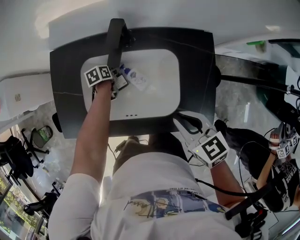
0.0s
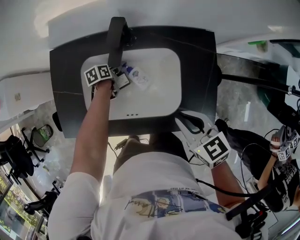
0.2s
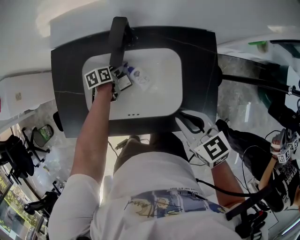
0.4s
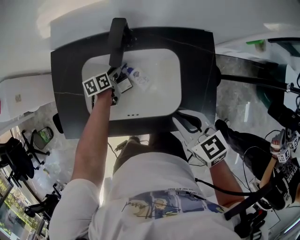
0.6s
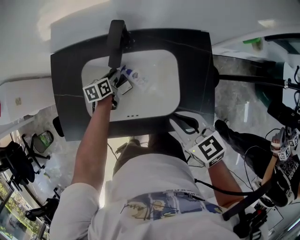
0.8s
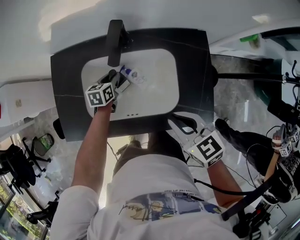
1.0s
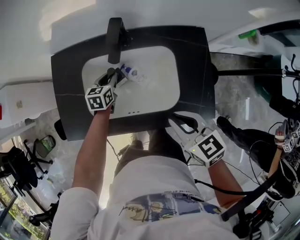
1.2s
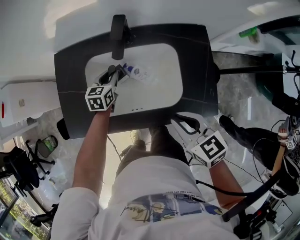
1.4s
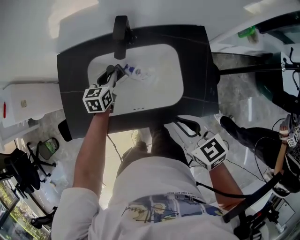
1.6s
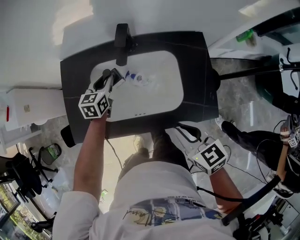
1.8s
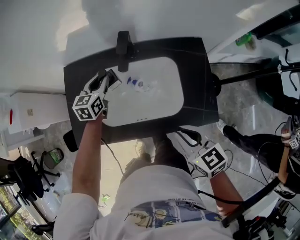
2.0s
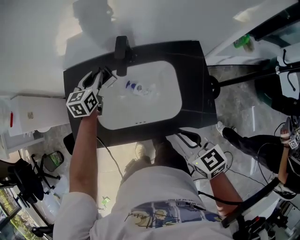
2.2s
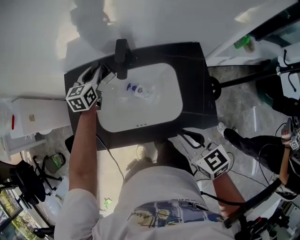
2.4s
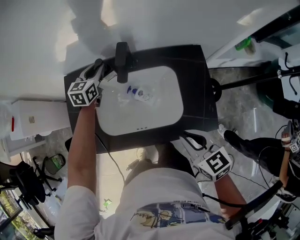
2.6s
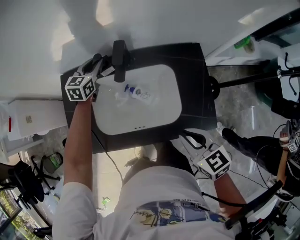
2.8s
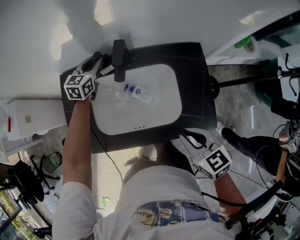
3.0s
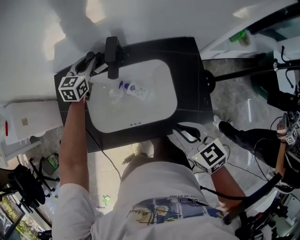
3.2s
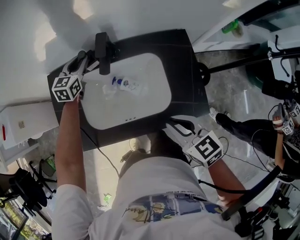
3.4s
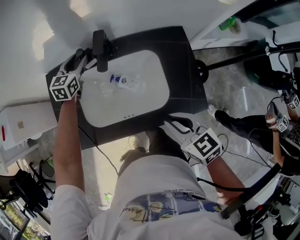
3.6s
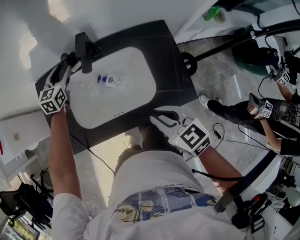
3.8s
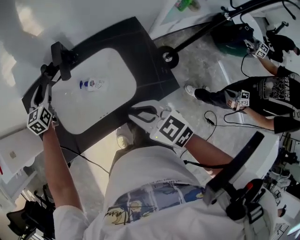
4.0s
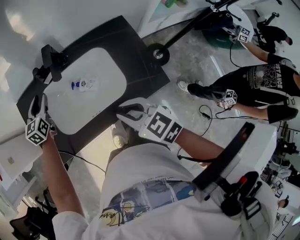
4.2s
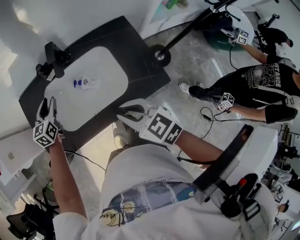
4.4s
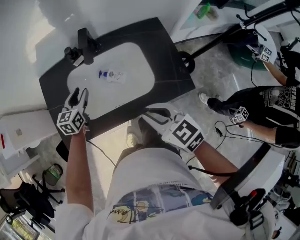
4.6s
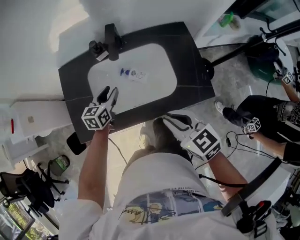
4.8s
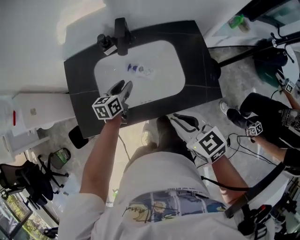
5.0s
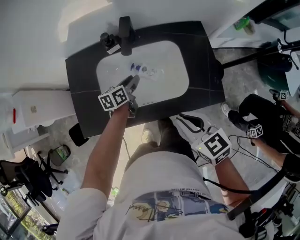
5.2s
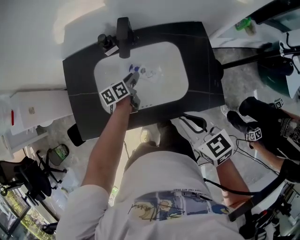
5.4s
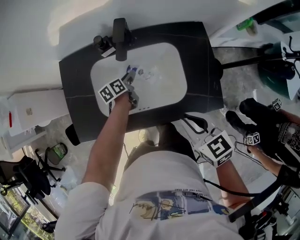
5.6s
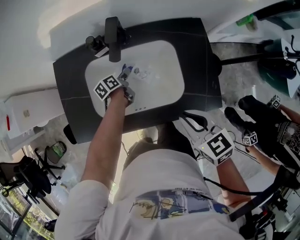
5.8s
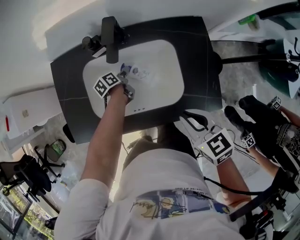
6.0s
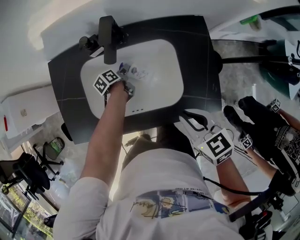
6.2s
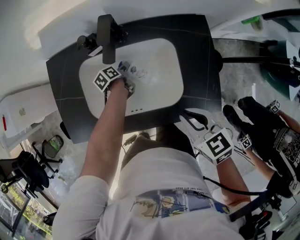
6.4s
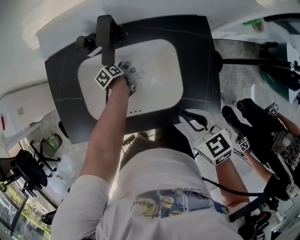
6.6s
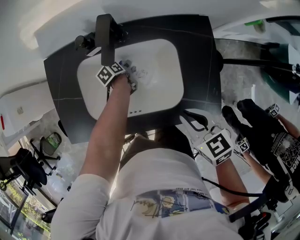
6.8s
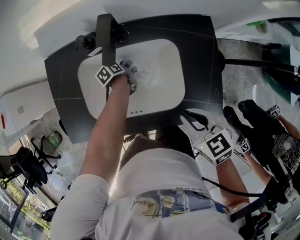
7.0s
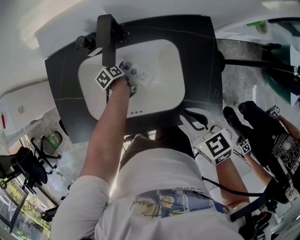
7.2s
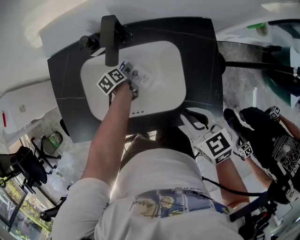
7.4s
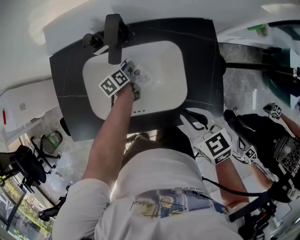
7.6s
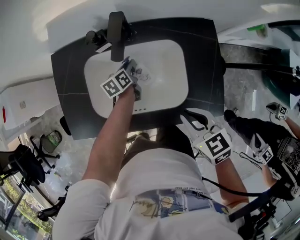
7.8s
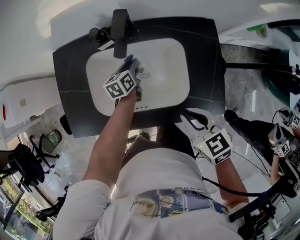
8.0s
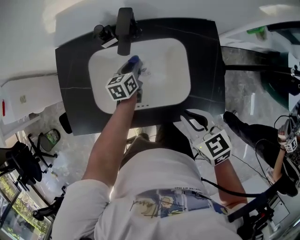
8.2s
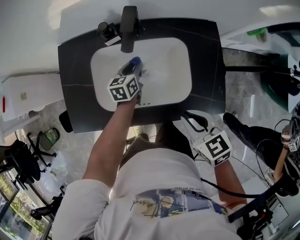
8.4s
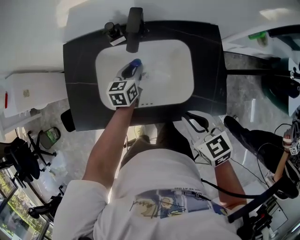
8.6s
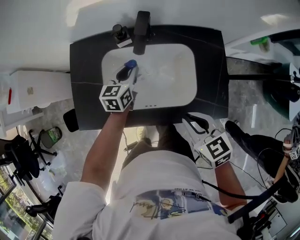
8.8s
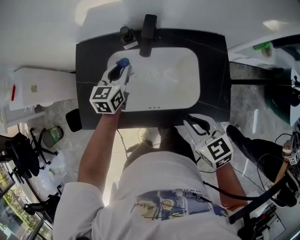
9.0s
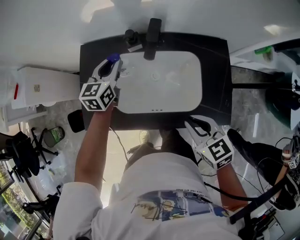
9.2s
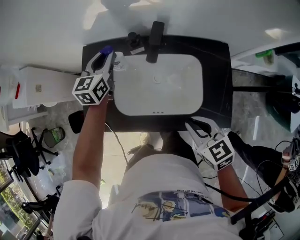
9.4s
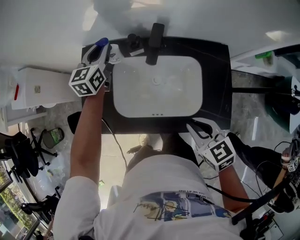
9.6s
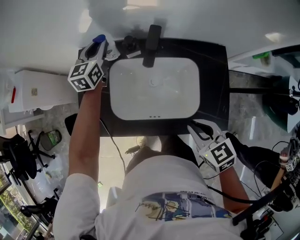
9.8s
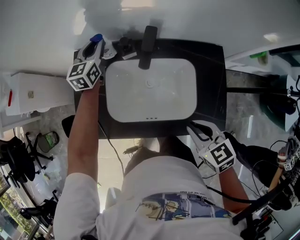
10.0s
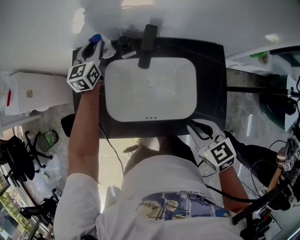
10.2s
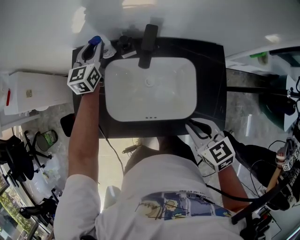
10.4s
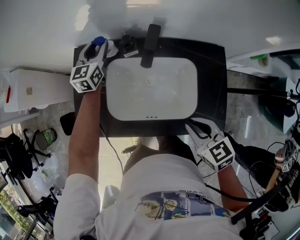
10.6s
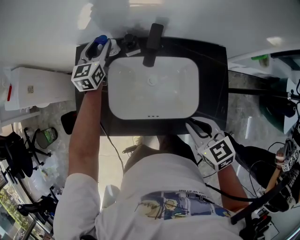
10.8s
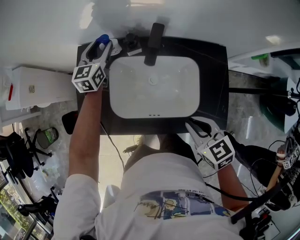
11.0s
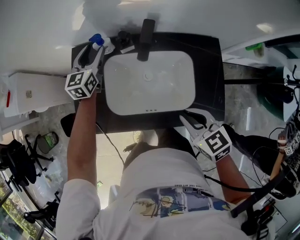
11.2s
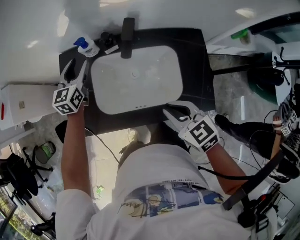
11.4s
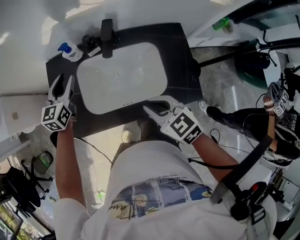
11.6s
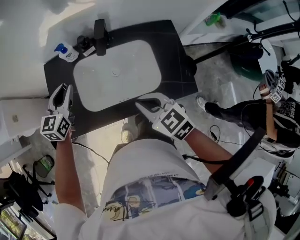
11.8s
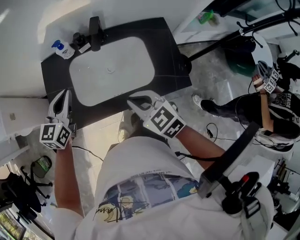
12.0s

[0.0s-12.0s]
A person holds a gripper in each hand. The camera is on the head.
0.0s to 1.6s: The right gripper moves backward, roughly 5 cm, while the left gripper heads upward, covering approximately 15 cm, rotates about 40 degrees, and closes up.
1.6s to 3.0s: The left gripper shifts about 15 cm forward and upward.
3.0s to 4.4s: The left gripper moves backward, about 15 cm, and opens up. The right gripper goes about 5 cm to the left.
4.4s to 6.0s: The right gripper heads to the right, covering approximately 5 cm. The left gripper is displaced downward and to the right by approximately 25 cm, and rolls counterclockwise, seen from behind, by approximately 60 degrees.
6.0s to 7.6s: There are only small adjustments of the grippers.
7.6s to 9.0s: The left gripper travels upward and to the left by roughly 20 cm, and rotates around the line of its fingers by roughly 40 degrees, clockwise from behind, while the right gripper goes roughly 5 cm to the left.
9.0s to 10.4s: The left gripper travels forward by about 15 cm.
10.4s to 12.0s: The left gripper is displaced backward by some 25 cm, swivels approximately 20 degrees, and opens, then closes once more; the right gripper travels to the left by some 10 cm.

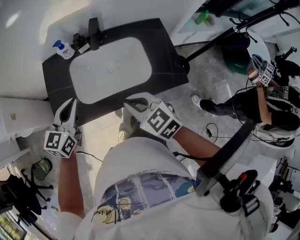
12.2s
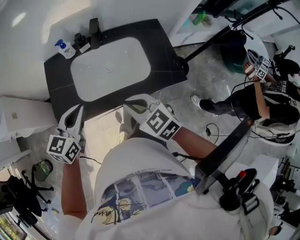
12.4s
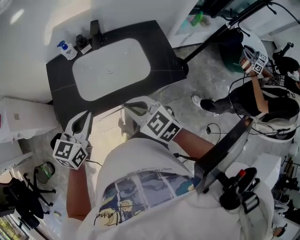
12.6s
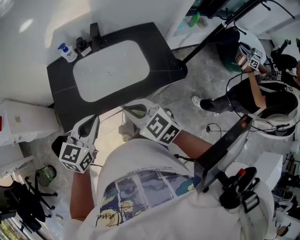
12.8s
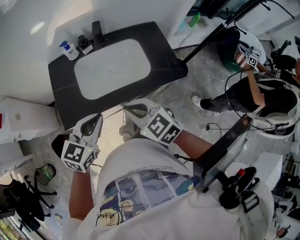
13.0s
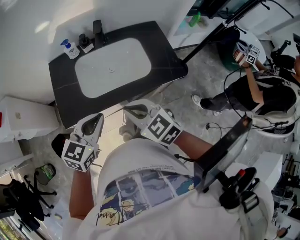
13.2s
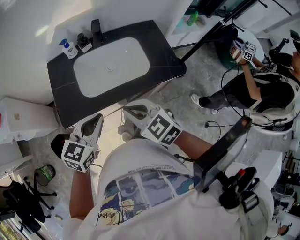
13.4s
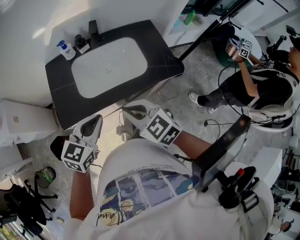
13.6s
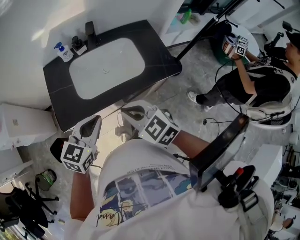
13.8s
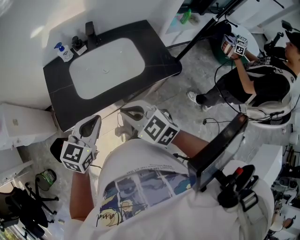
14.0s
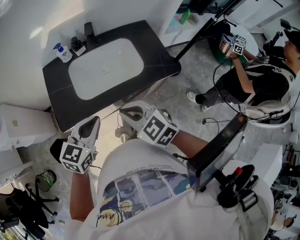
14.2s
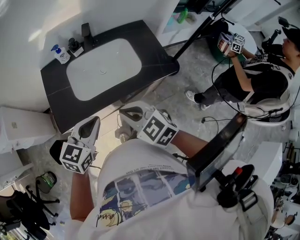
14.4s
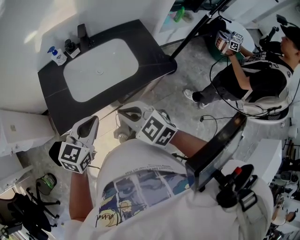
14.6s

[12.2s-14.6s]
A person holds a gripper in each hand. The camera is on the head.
12.2s to 13.4s: The right gripper heads backward, covering some 10 cm; the left gripper heads backward, covering approximately 15 cm.
13.4s to 14.6s: The grippers move only a little.

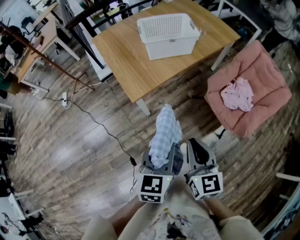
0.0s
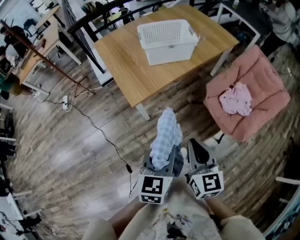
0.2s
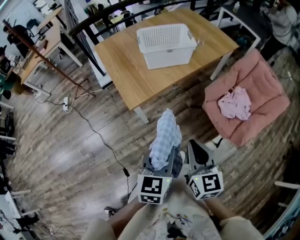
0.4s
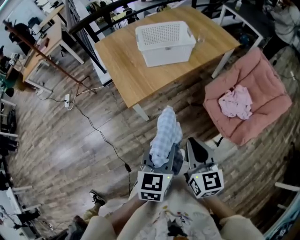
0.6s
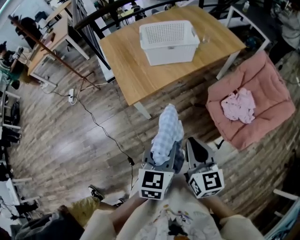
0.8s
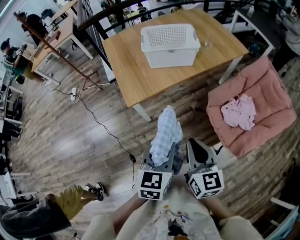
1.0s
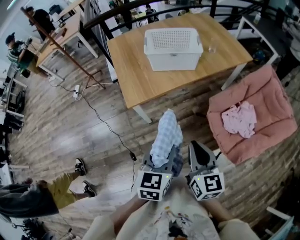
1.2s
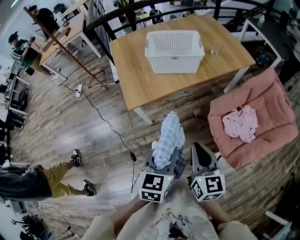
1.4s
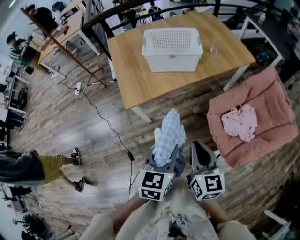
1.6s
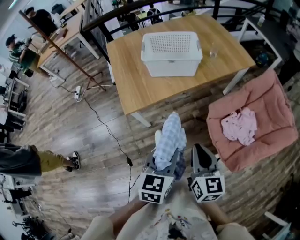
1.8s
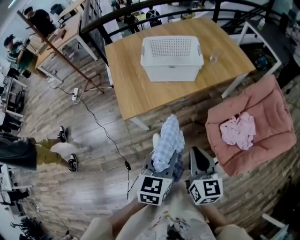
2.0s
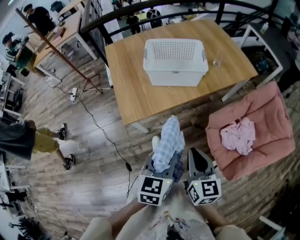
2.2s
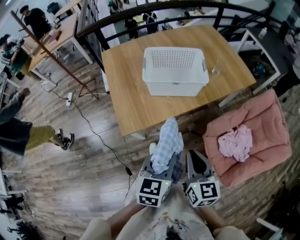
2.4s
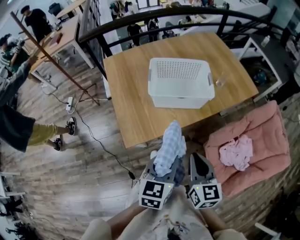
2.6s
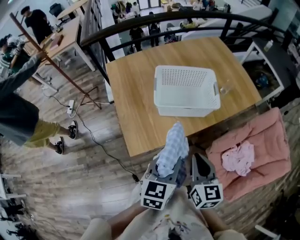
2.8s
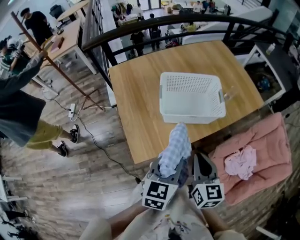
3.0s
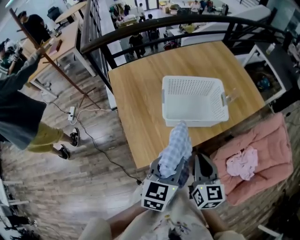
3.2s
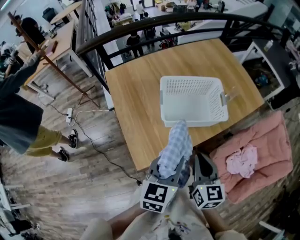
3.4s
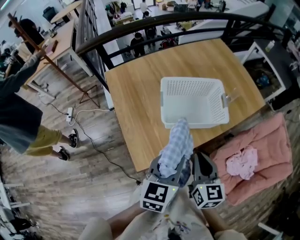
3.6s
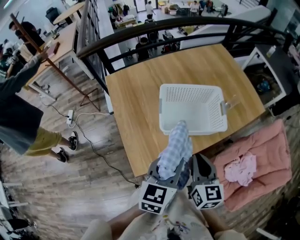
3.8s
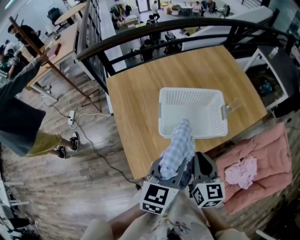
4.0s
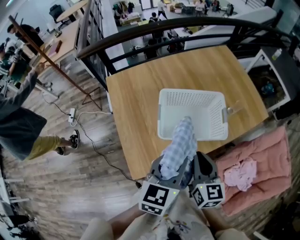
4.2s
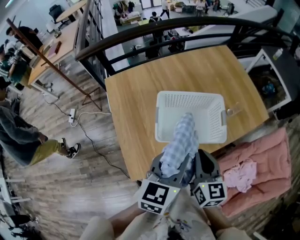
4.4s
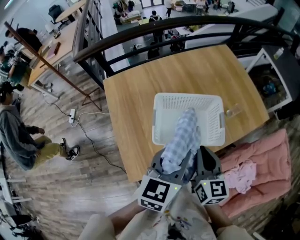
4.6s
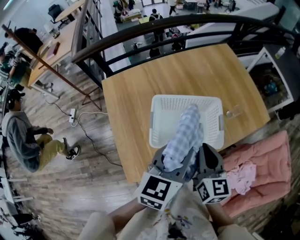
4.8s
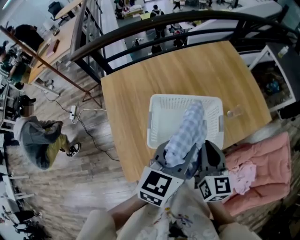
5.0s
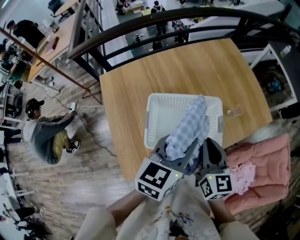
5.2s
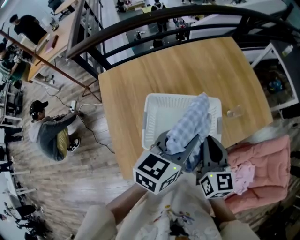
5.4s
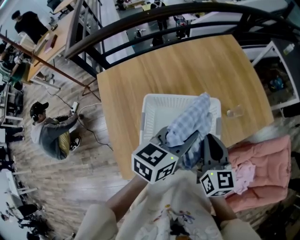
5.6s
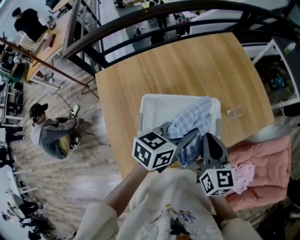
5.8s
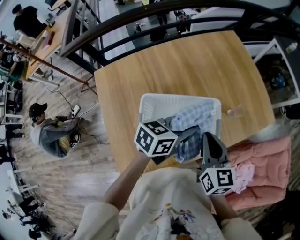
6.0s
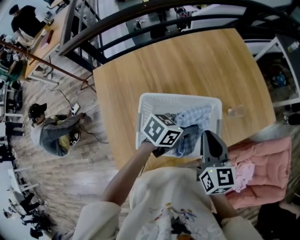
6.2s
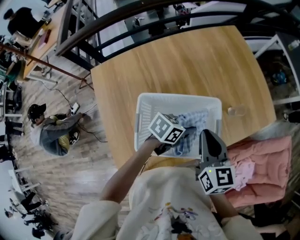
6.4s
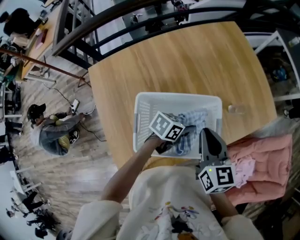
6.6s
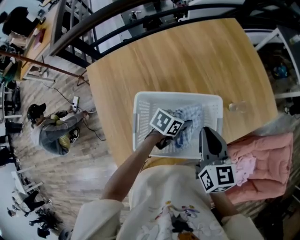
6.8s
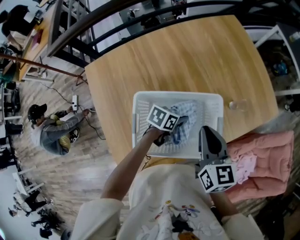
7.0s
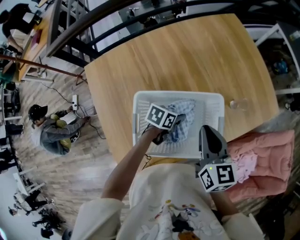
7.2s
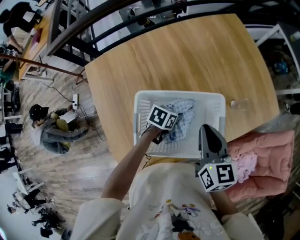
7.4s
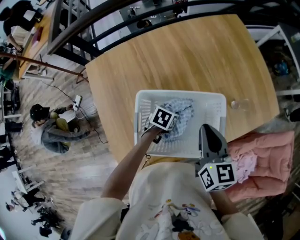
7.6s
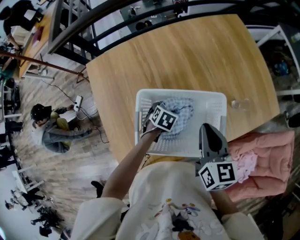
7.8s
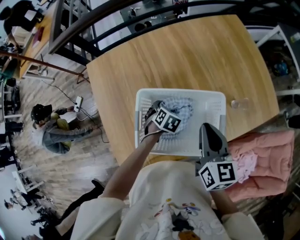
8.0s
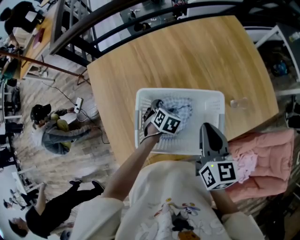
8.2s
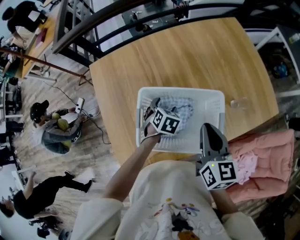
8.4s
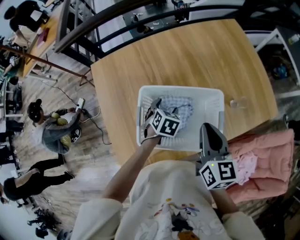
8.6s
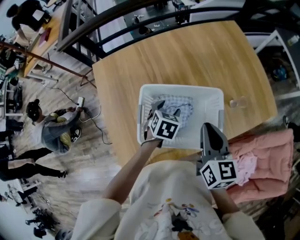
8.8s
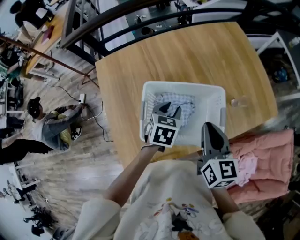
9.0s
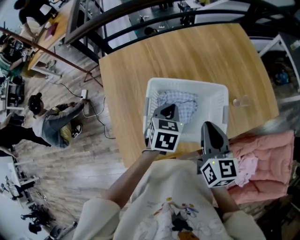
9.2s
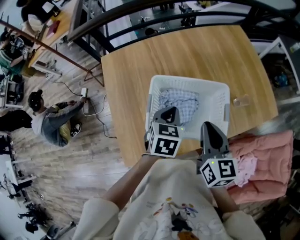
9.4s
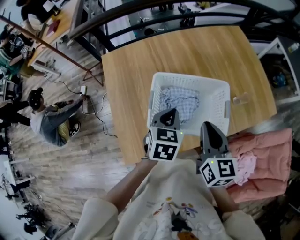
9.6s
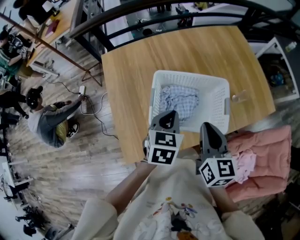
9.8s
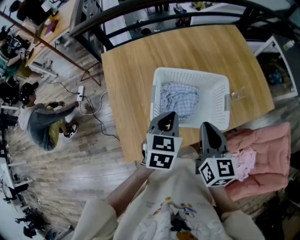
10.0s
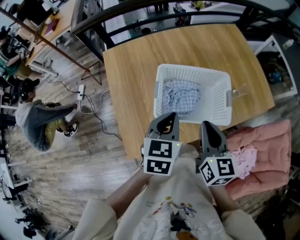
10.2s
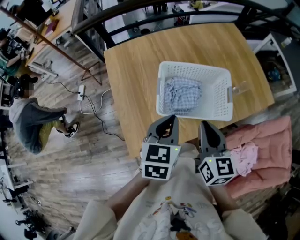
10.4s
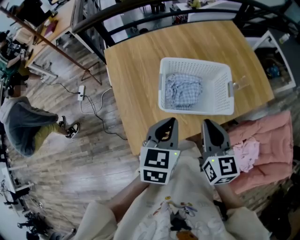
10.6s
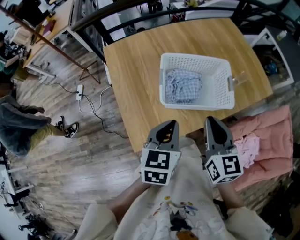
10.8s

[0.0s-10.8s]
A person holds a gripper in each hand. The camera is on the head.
0.0s to 1.6s: Both grippers travel together to the right and forward, some 15 cm.
1.6s to 3.0s: The two grippers go roughly 30 cm forward and to the left.
3.0s to 4.6s: Both grippers move forward, some 20 cm.
4.6s to 6.2s: The right gripper moves forward, some 15 cm. The left gripper goes some 25 cm forward, downward and to the right, and turns by roughly 40 degrees.
6.2s to 7.8s: The left gripper moves downward and to the left, some 25 cm, tips its fingers downward by some 40 degrees, and opens up.
7.8s to 9.2s: The right gripper is displaced backward by roughly 5 cm. The left gripper is displaced upward by some 20 cm, changes its angle by some 30 degrees, and closes its fingers.
9.2s to 10.8s: The right gripper travels backward and to the left by roughly 15 cm. Meanwhile the left gripper shifts roughly 20 cm backward and upward.
